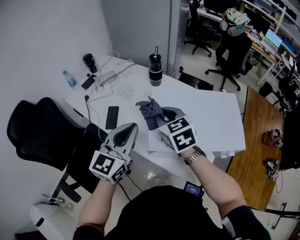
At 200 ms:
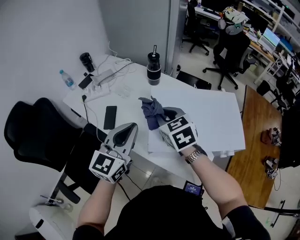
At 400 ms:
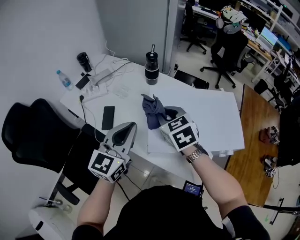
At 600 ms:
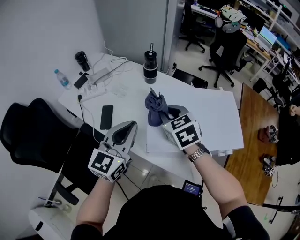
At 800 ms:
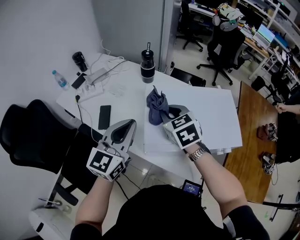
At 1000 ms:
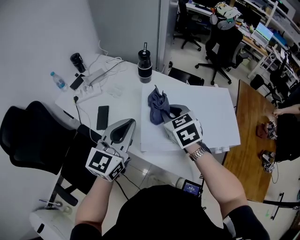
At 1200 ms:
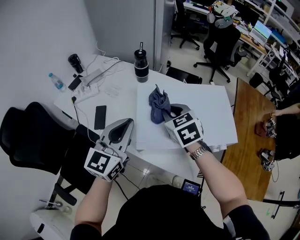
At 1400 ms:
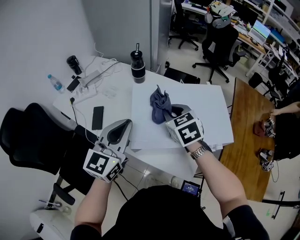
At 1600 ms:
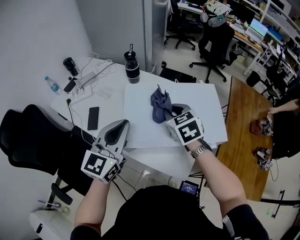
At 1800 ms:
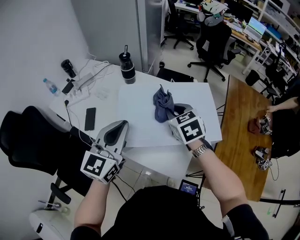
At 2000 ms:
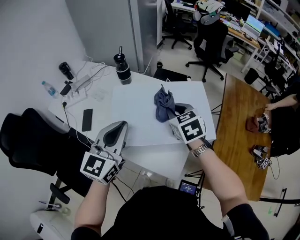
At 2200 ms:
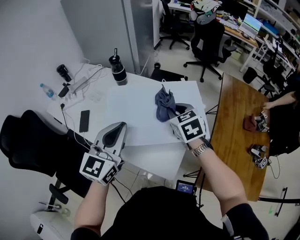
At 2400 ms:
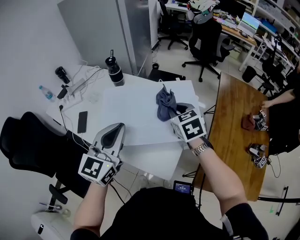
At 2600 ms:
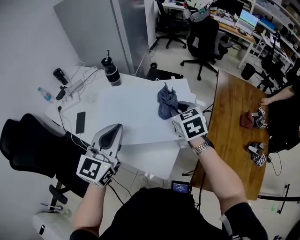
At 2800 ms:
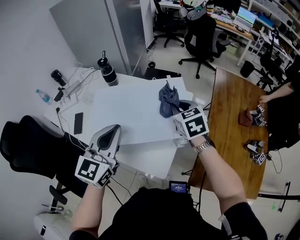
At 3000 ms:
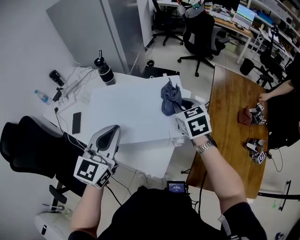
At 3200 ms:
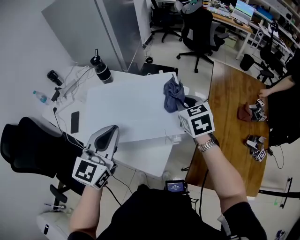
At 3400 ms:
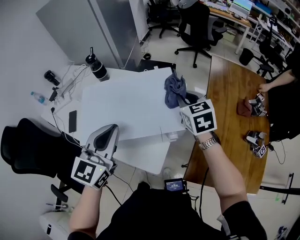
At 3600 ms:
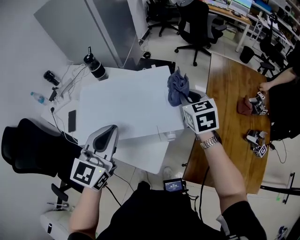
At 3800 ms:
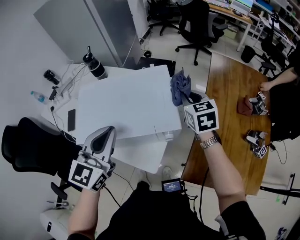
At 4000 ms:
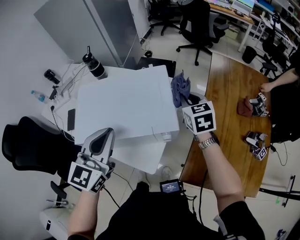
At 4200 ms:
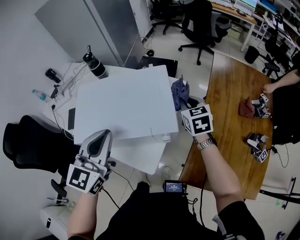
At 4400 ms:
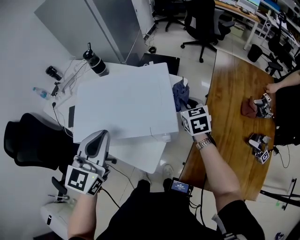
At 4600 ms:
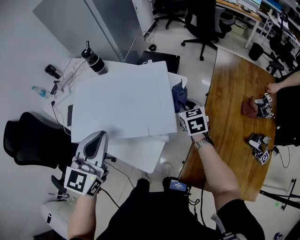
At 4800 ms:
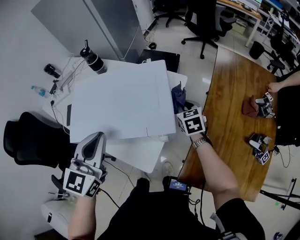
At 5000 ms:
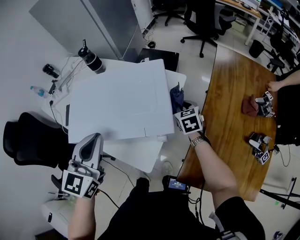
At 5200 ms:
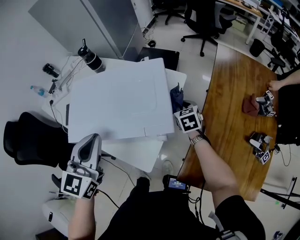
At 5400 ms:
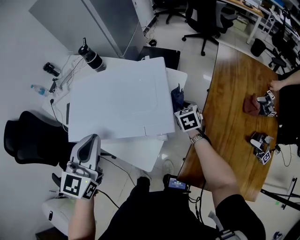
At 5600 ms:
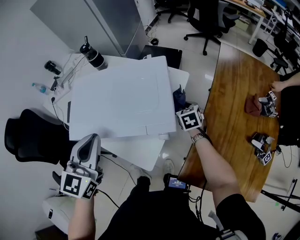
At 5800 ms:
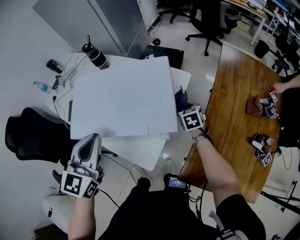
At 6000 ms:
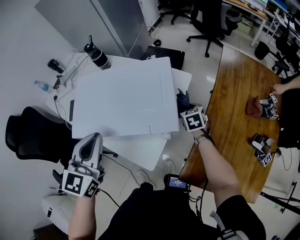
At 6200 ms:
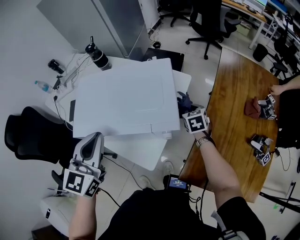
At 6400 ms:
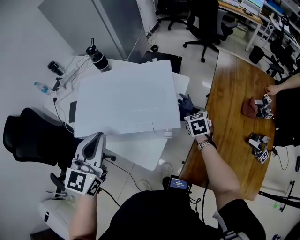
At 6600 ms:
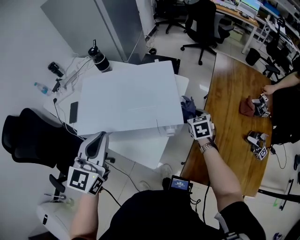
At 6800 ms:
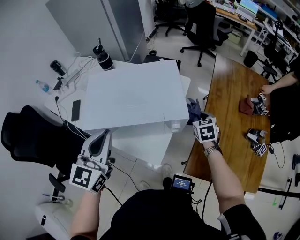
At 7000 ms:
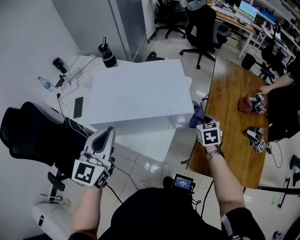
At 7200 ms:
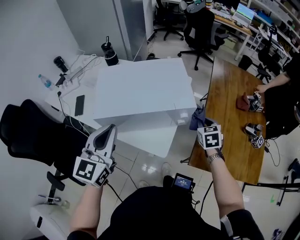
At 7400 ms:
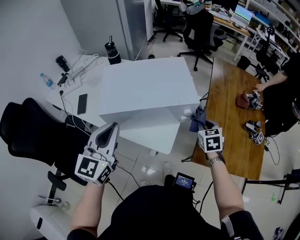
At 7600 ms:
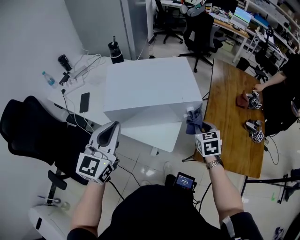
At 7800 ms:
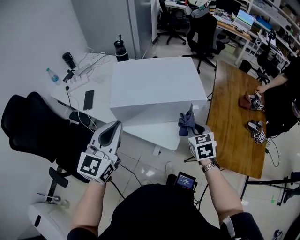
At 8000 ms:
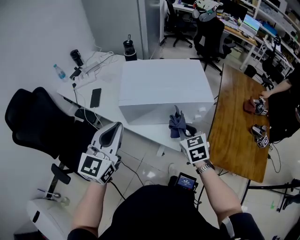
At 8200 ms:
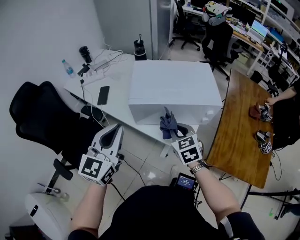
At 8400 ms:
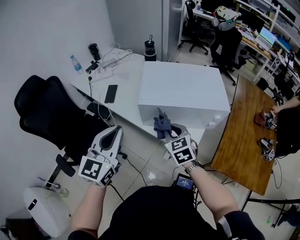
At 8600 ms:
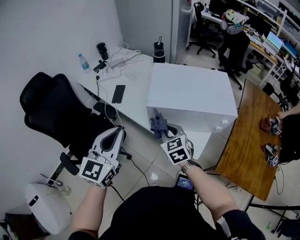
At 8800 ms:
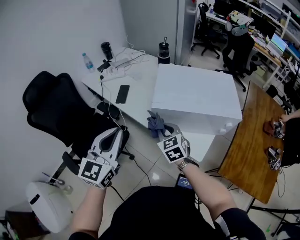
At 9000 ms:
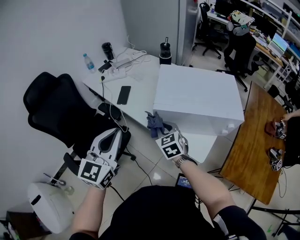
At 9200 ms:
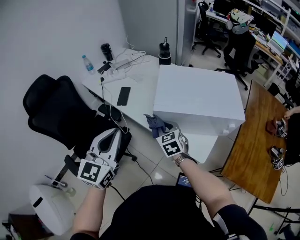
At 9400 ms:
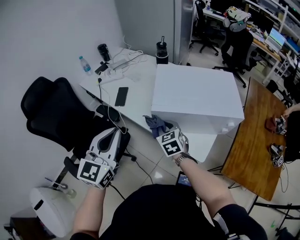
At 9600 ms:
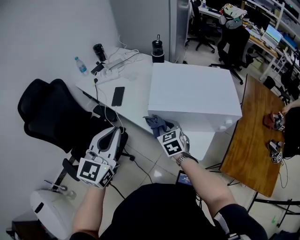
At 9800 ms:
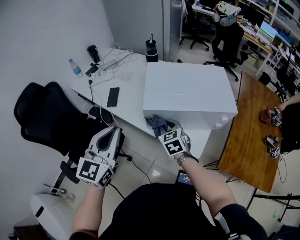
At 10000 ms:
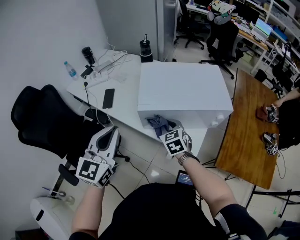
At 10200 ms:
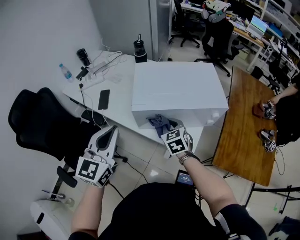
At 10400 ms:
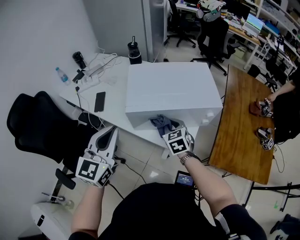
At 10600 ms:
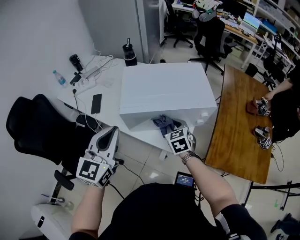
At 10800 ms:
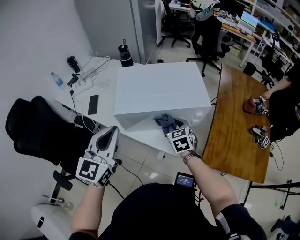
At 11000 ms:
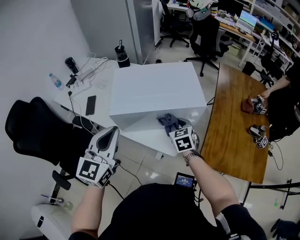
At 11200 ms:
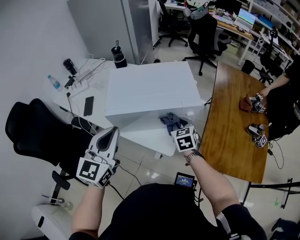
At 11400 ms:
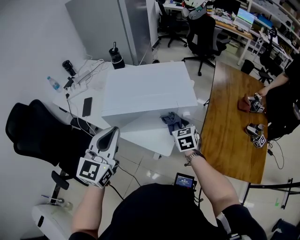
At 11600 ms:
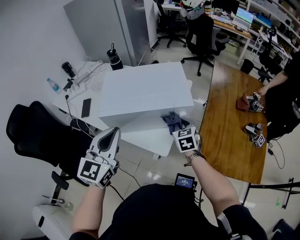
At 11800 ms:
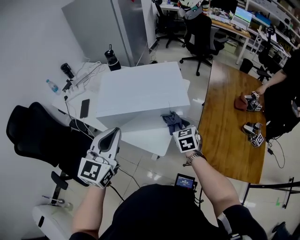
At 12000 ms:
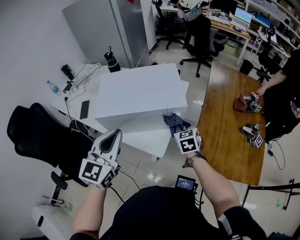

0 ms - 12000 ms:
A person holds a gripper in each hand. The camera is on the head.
0 ms - 1600 ms: The right gripper moves to the right, approximately 15 cm; the left gripper goes approximately 5 cm to the right.
1600 ms - 3000 ms: Both grippers travel together to the right, approximately 20 cm.
3000 ms - 4400 ms: The left gripper moves to the right, about 5 cm. The right gripper moves downward and to the right, some 15 cm.
4400 ms - 6000 ms: The right gripper heads downward, covering some 10 cm.
6000 ms - 7600 ms: The right gripper heads backward and upward, covering about 25 cm. Meanwhile the left gripper heads backward and to the left, covering some 15 cm.
7600 ms - 9000 ms: The left gripper heads to the left, covering about 20 cm, while the right gripper is displaced to the left by approximately 40 cm, and rotates approximately 30 degrees.
9000 ms - 10400 ms: The right gripper moves to the right, roughly 15 cm; the left gripper heads to the right, covering about 10 cm.
10400 ms - 12000 ms: Both grippers move to the right, some 20 cm.

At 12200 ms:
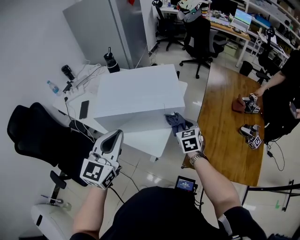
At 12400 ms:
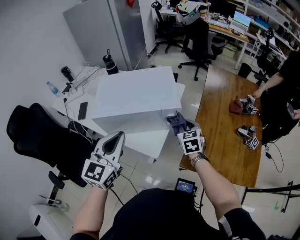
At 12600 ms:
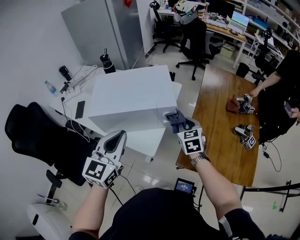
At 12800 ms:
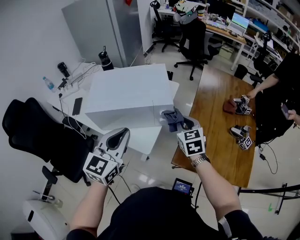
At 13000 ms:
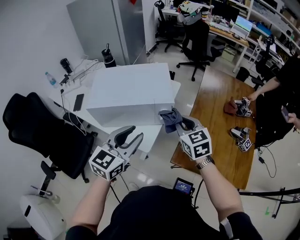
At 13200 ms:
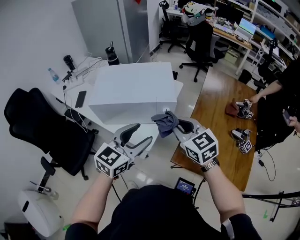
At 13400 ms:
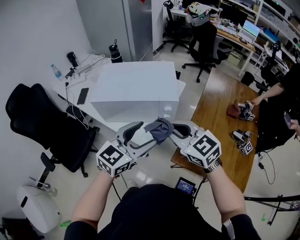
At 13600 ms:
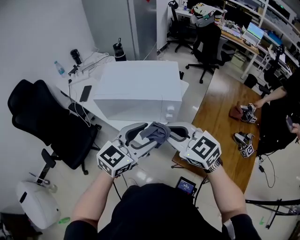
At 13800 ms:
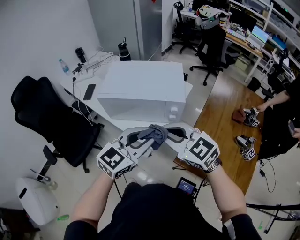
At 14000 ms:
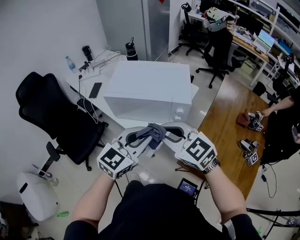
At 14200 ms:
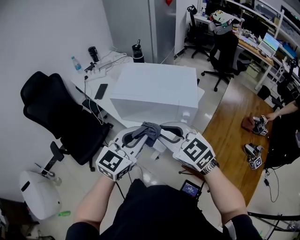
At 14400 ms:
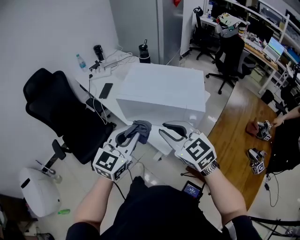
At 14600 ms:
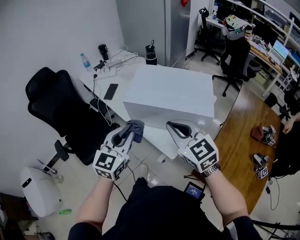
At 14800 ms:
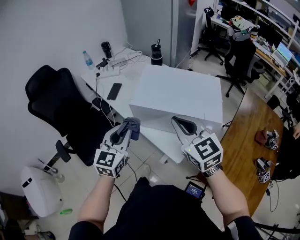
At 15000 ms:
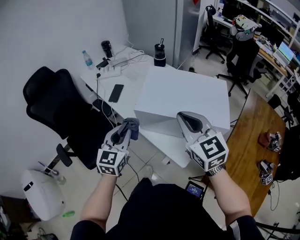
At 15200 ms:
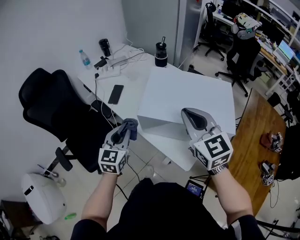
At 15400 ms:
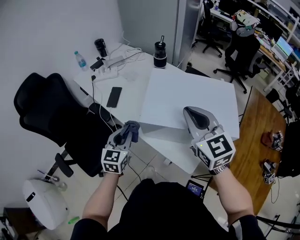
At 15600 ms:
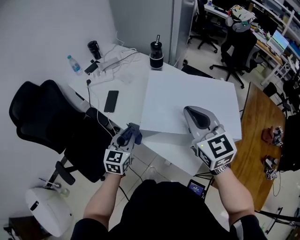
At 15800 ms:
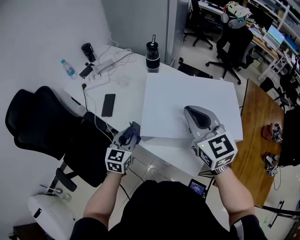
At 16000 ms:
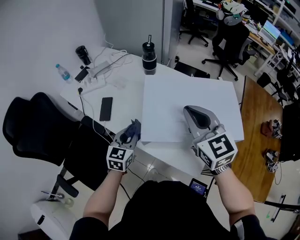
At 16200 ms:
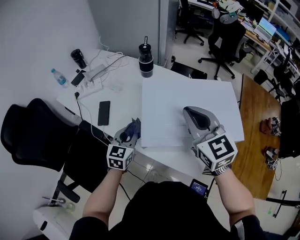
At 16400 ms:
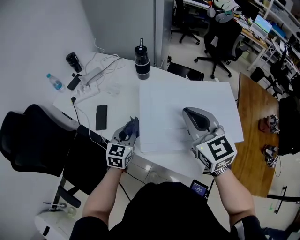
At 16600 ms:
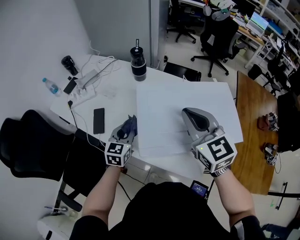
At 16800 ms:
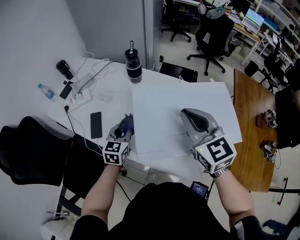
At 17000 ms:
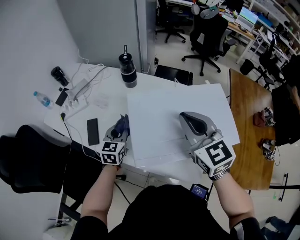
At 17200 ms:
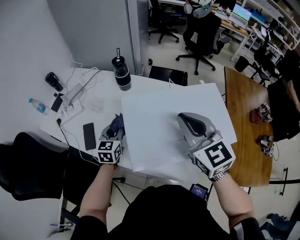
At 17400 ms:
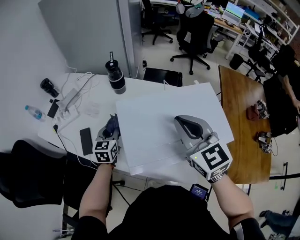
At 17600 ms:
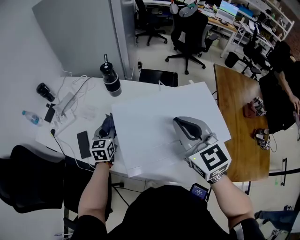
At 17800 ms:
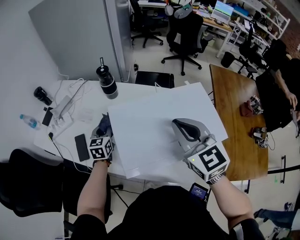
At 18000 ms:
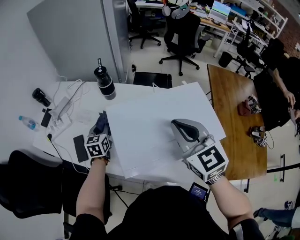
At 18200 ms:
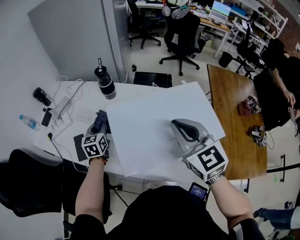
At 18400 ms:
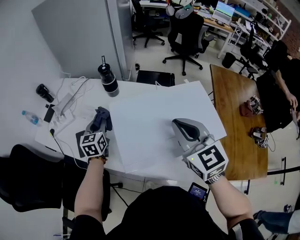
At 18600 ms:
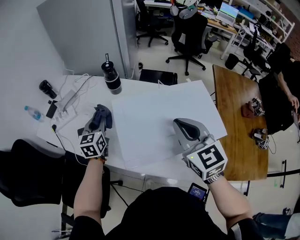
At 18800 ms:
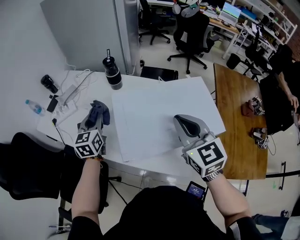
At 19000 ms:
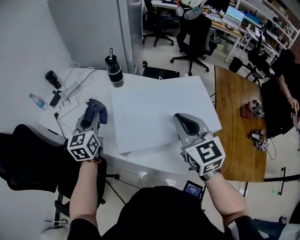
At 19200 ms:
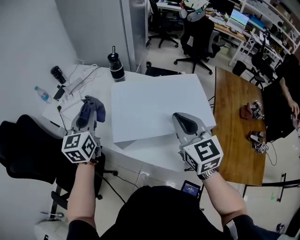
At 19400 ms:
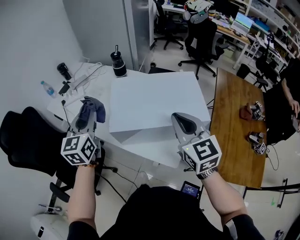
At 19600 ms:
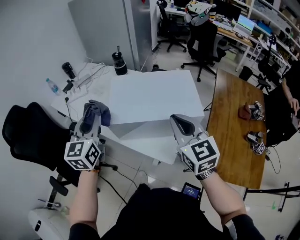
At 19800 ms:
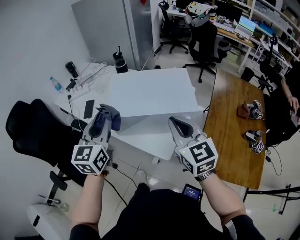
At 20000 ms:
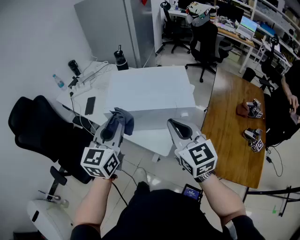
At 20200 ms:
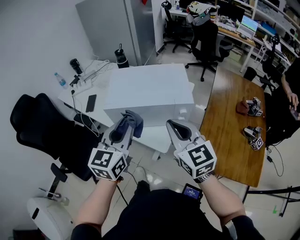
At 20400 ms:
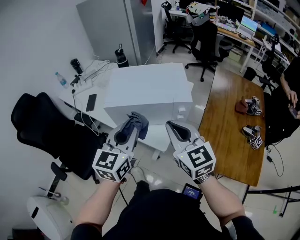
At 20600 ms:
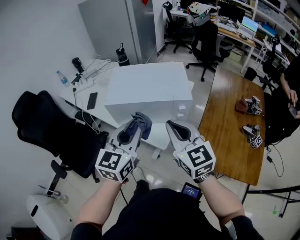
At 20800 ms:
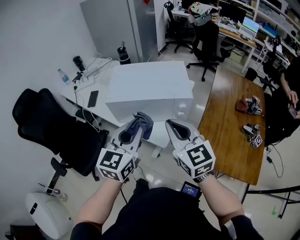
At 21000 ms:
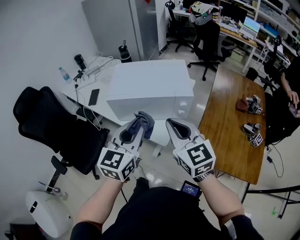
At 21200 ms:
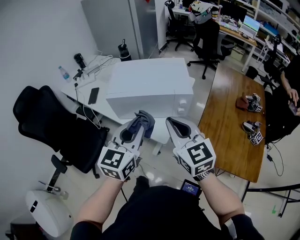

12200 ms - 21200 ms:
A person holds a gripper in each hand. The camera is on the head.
12200 ms - 13800 ms: The right gripper is displaced upward, backward and to the left by about 25 cm, and turns by some 60 degrees. The left gripper heads to the right and backward, covering roughly 15 cm, and opens.
13800 ms - 15200 ms: The right gripper is displaced forward and to the left by about 25 cm, and changes its angle by approximately 20 degrees, while the left gripper goes roughly 35 cm to the left and forward, and rotates some 40 degrees.
15200 ms - 16600 ms: The right gripper shifts roughly 15 cm forward. The left gripper goes some 20 cm forward and downward, and rotates roughly 20 degrees.
16600 ms - 18200 ms: The right gripper heads to the right, covering about 5 cm, while the left gripper shifts roughly 15 cm forward.
18200 ms - 19800 ms: The right gripper travels backward by roughly 20 cm. Meanwhile the left gripper heads backward and upward, covering roughly 40 cm, and changes its angle by approximately 20 degrees.
19800 ms - 21200 ms: The right gripper goes roughly 10 cm backward; the left gripper travels backward and to the right by roughly 20 cm.

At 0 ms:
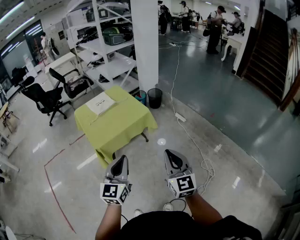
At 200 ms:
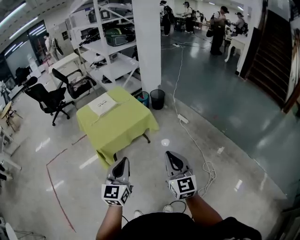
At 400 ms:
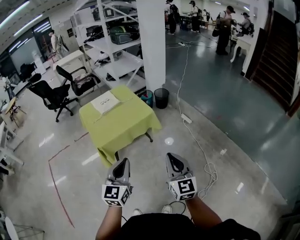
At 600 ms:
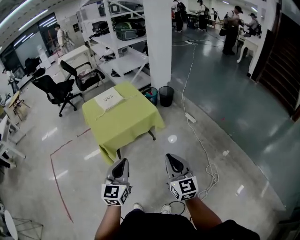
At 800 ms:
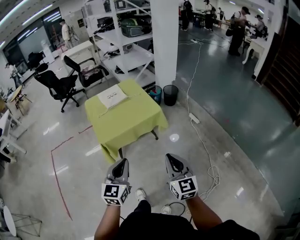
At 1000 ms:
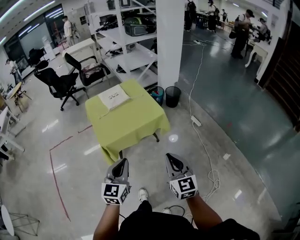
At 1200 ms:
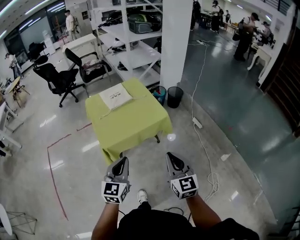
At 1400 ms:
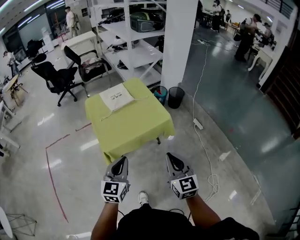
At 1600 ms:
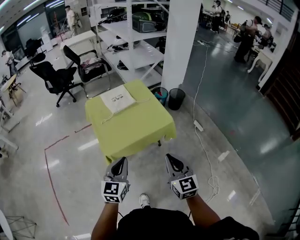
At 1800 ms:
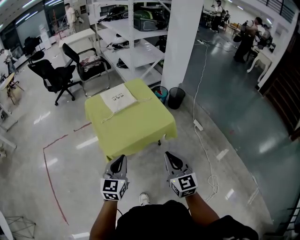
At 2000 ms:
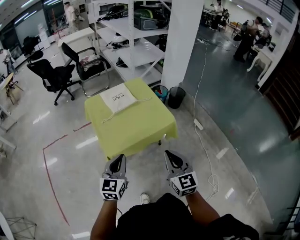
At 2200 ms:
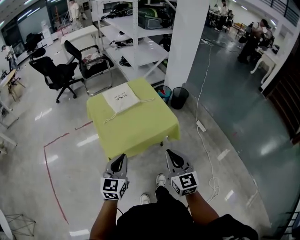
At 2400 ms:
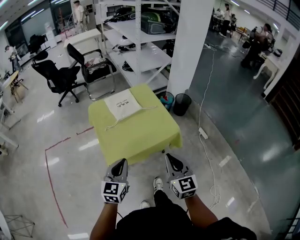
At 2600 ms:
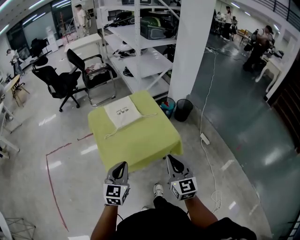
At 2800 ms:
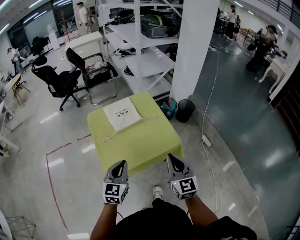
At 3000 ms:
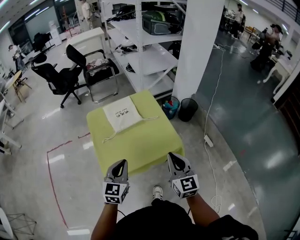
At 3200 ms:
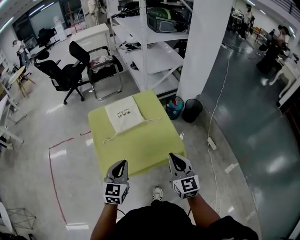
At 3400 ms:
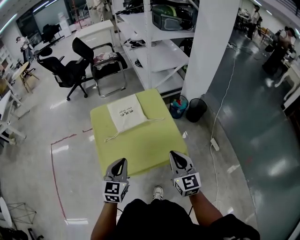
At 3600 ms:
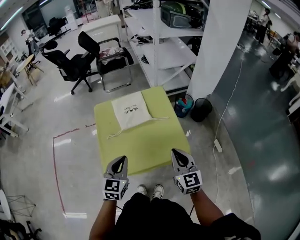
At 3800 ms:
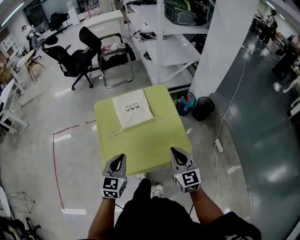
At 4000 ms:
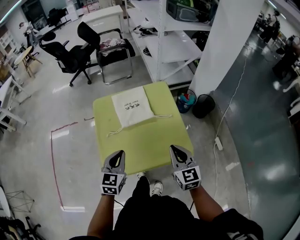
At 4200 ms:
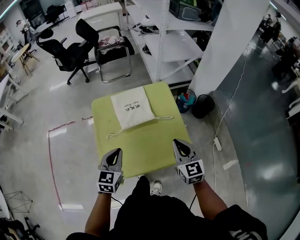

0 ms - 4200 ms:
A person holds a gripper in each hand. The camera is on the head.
0 ms - 1400 ms: The right gripper moves forward, approximately 15 cm. Meanwhile the left gripper shifts roughly 20 cm forward, to the left and downward.
1400 ms - 2800 ms: Both grippers travel together forward, roughly 20 cm.
2800 ms - 4200 ms: Both grippers travel together forward, approximately 20 cm.
